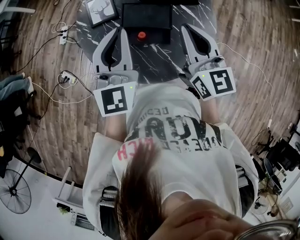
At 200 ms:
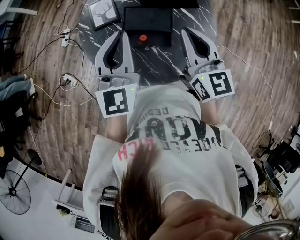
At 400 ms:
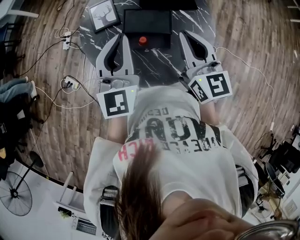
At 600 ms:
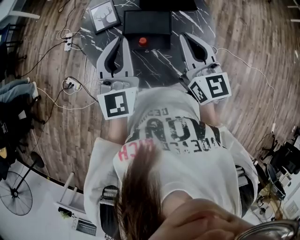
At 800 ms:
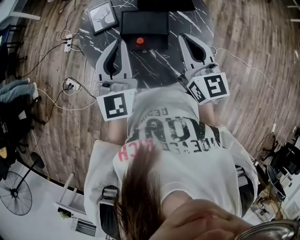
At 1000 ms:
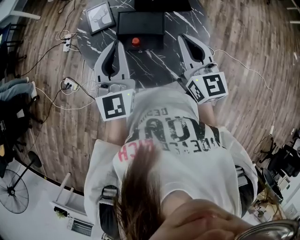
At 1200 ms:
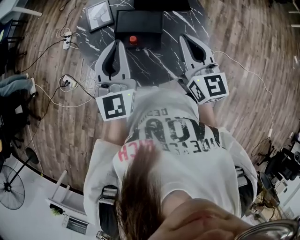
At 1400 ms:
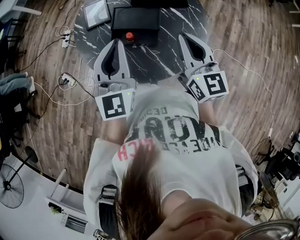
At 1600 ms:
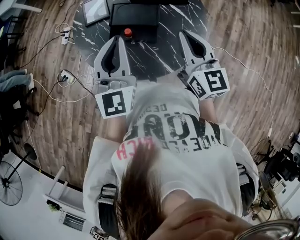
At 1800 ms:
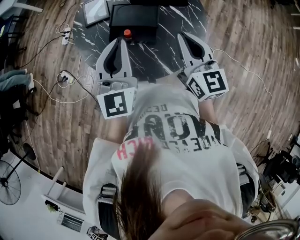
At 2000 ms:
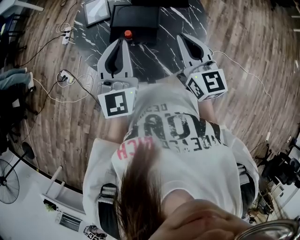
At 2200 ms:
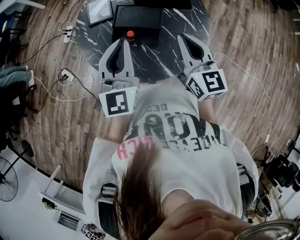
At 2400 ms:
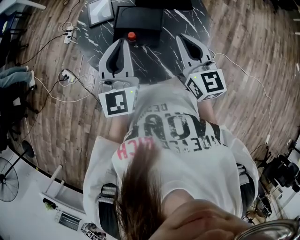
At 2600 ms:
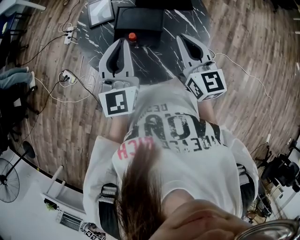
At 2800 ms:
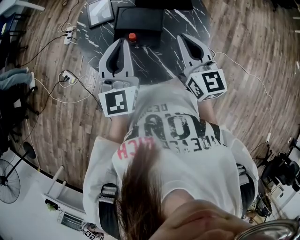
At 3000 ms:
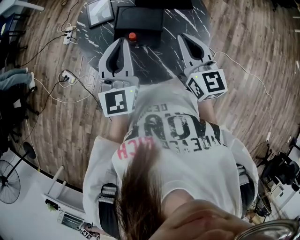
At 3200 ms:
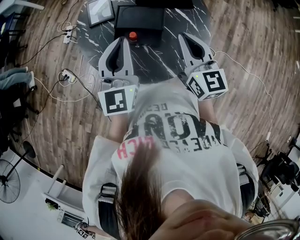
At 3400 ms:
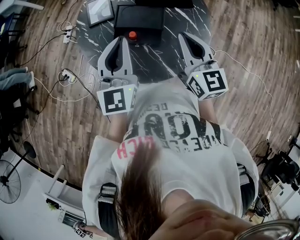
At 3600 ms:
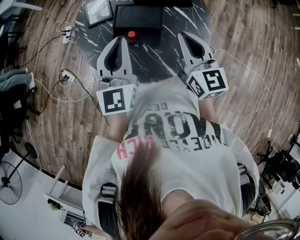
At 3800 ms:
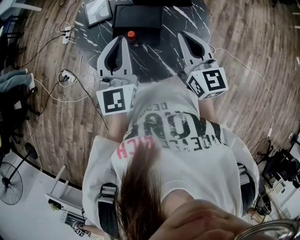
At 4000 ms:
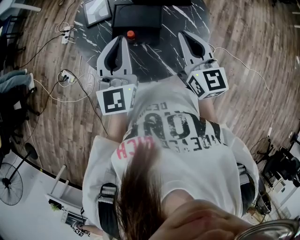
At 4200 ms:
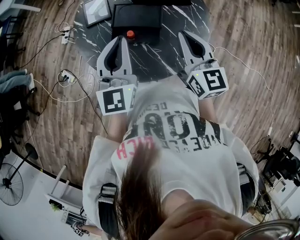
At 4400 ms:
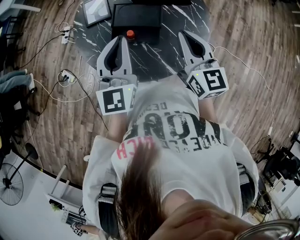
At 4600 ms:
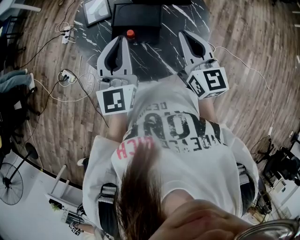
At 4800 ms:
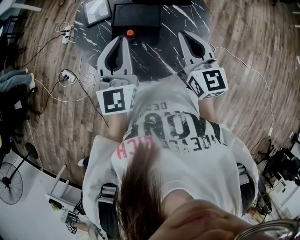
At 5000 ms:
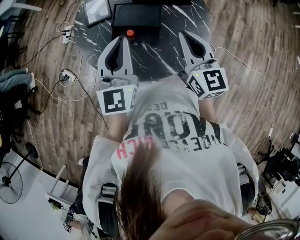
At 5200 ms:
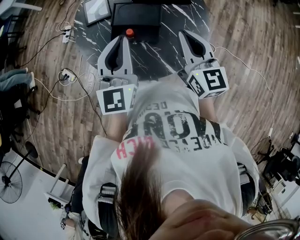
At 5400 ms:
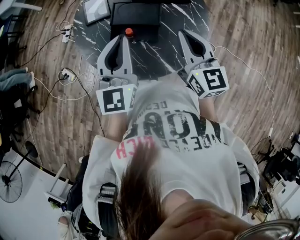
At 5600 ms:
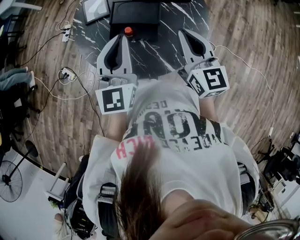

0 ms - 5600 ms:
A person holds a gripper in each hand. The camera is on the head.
0 ms - 1400 ms: The left gripper goes approximately 5 cm backward, while the right gripper travels to the right and backward by some 10 cm.
1400 ms - 2800 ms: The grippers move only a little.
2800 ms - 4200 ms: Both grippers stay put.
4200 ms - 5600 ms: There are only small adjustments of the grippers.

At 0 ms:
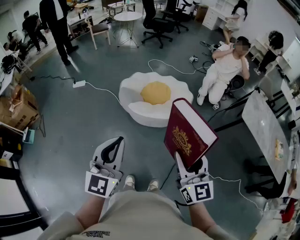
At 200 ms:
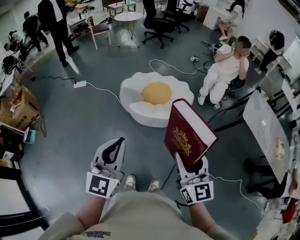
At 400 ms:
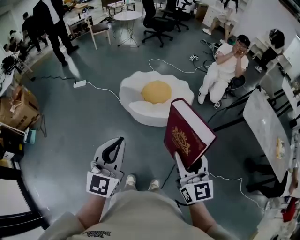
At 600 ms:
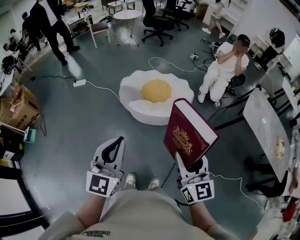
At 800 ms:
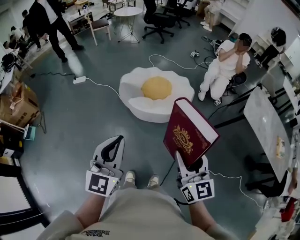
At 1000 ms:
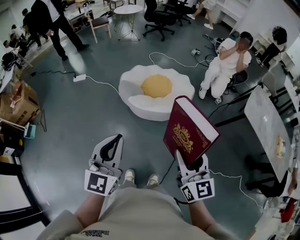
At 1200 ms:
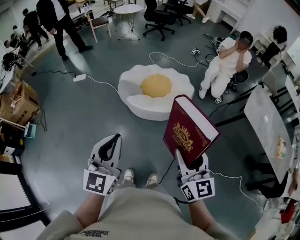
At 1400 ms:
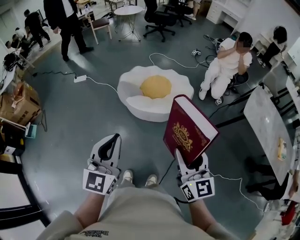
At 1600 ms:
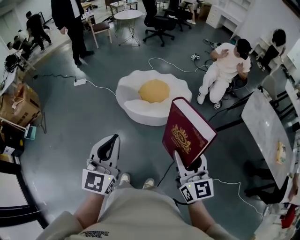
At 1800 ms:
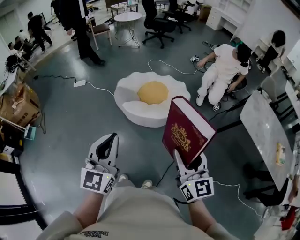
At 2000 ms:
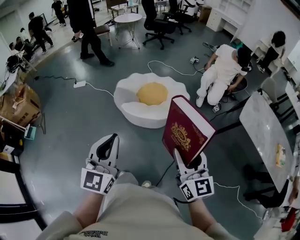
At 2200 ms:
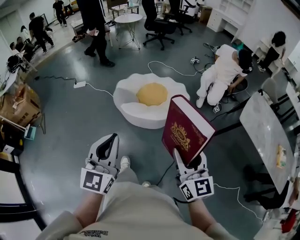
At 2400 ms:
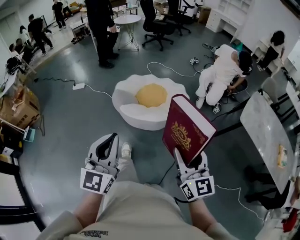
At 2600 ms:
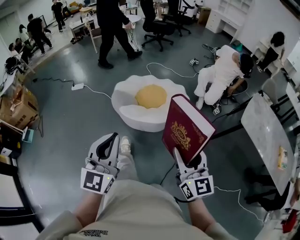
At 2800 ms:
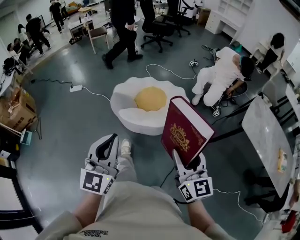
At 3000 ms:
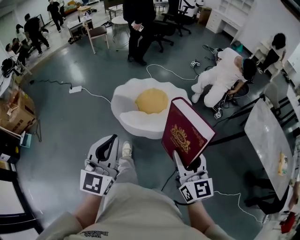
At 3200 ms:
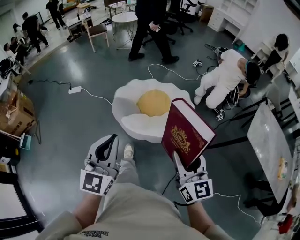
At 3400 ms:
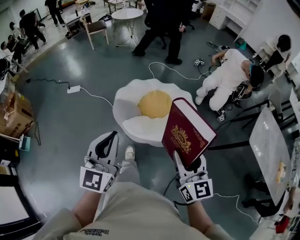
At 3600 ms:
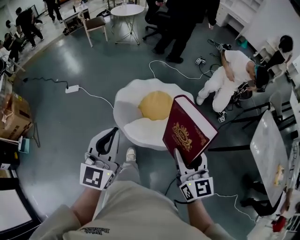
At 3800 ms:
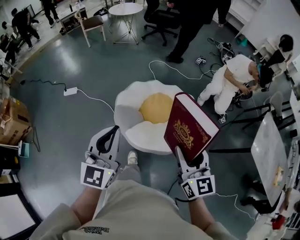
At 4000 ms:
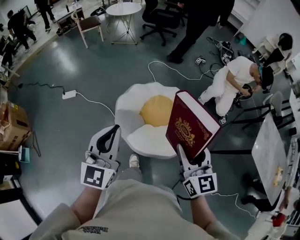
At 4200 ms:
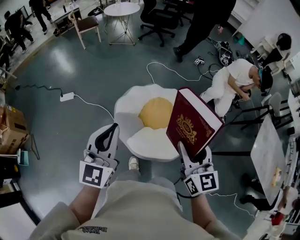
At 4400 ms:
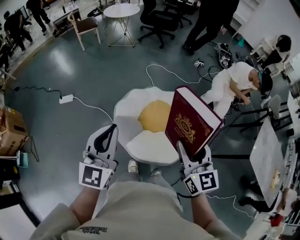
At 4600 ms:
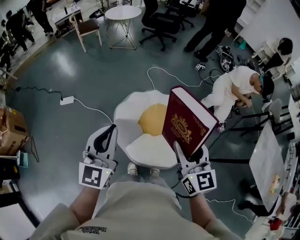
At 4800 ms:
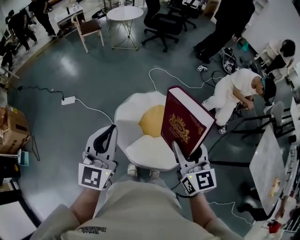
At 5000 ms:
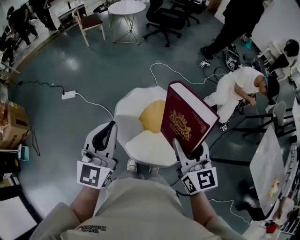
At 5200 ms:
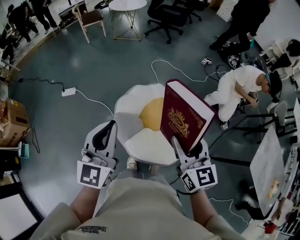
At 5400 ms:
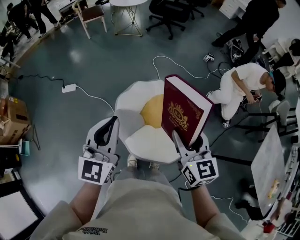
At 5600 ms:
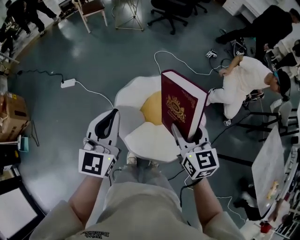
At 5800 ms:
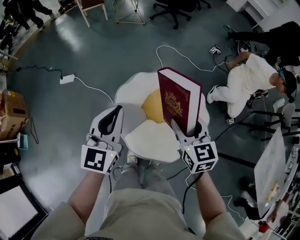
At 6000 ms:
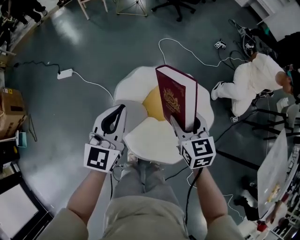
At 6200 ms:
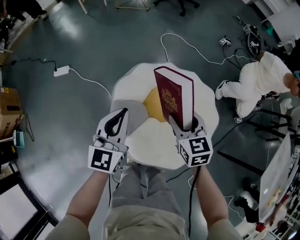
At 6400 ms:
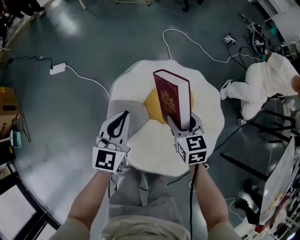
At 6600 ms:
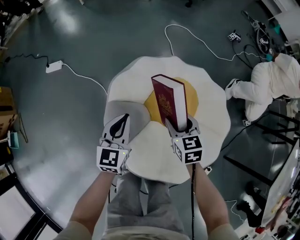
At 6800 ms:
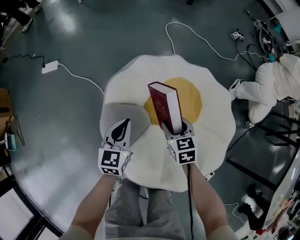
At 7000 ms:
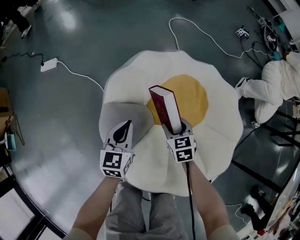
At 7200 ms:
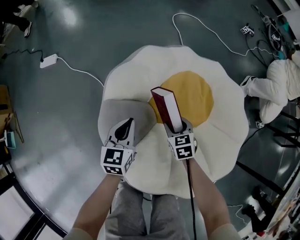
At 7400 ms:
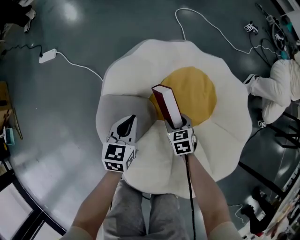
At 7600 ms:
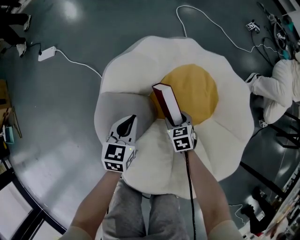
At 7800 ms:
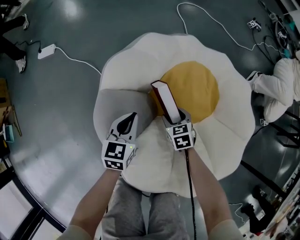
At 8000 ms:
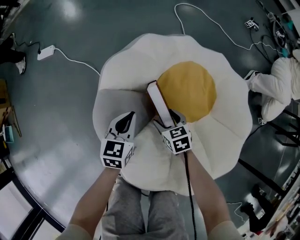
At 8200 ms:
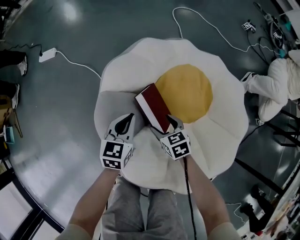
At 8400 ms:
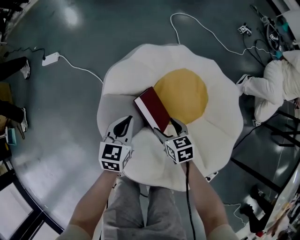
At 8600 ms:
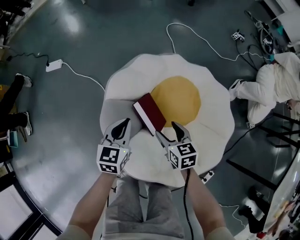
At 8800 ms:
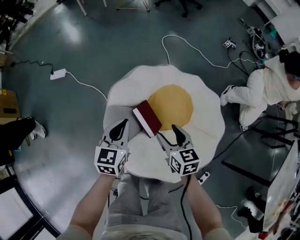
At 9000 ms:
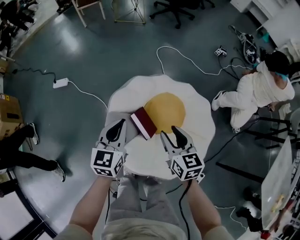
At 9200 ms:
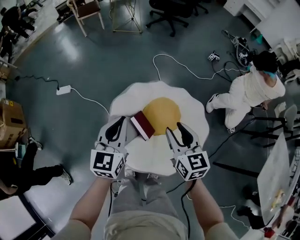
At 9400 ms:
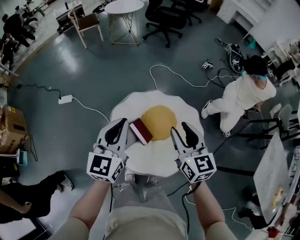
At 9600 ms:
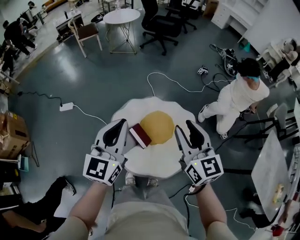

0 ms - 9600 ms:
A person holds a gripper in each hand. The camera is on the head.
0 ms - 1600 ms: Both grippers move to the right, about 10 cm.
1600 ms - 3200 ms: Both grippers move forward, some 20 cm.
3200 ms - 4800 ms: Both grippers move forward, approximately 35 cm.
4800 ms - 6400 ms: Both grippers travel together downward and forward, approximately 40 cm. The right gripper points its fingers about 30 degrees further downward.
6400 ms - 8000 ms: Both grippers travel together downward, about 35 cm. The right gripper changes its angle by roughly 20 degrees. Meanwhile the left gripper swivels roughly 20 degrees.
8000 ms - 9600 ms: The two grippers go some 70 cm upward. The right gripper points its fingers roughly 50 degrees further upward, and closes up. Meanwhile the left gripper tips its fingers upward by roughly 30 degrees.

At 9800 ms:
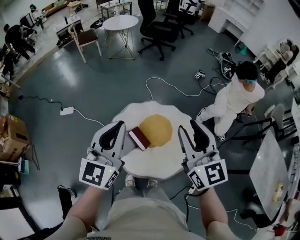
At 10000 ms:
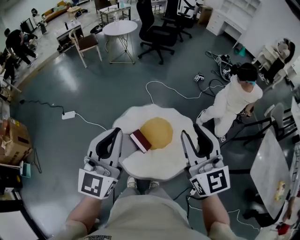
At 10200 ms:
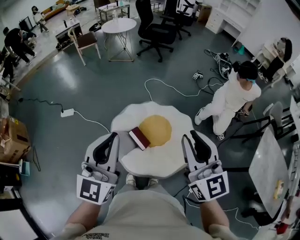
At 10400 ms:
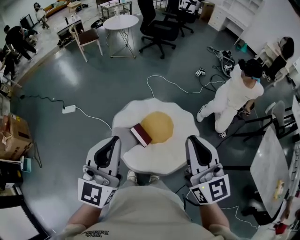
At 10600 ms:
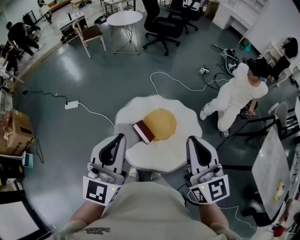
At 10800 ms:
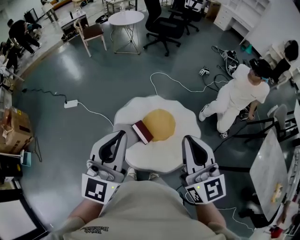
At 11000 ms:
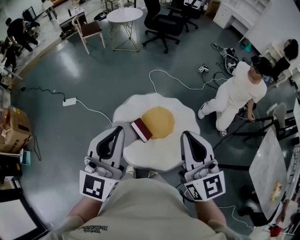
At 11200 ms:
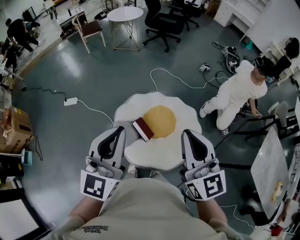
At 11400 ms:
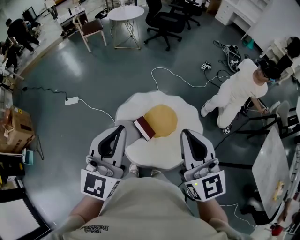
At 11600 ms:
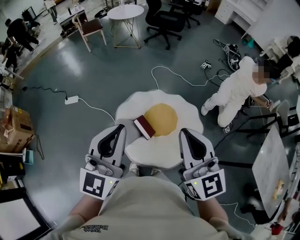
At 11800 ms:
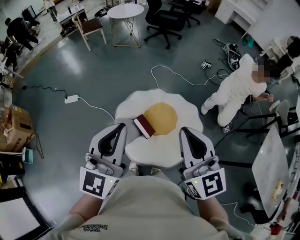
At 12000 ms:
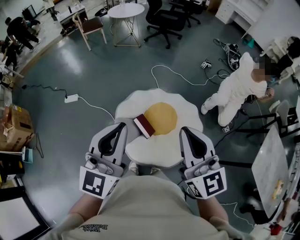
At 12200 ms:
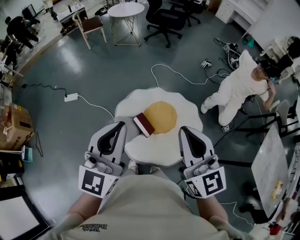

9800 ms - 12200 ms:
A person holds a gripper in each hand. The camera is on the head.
9800 ms - 11000 ms: Both grippers travel together backward, about 5 cm. The right gripper closes up.
11000 ms - 12200 ms: The grippers make only small movements.

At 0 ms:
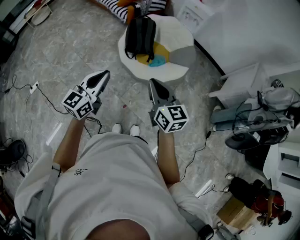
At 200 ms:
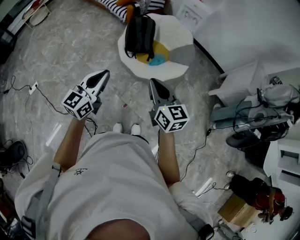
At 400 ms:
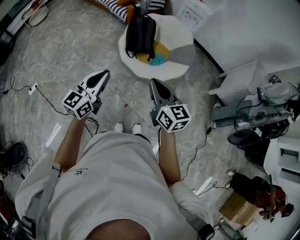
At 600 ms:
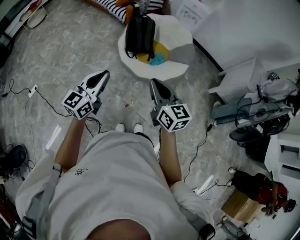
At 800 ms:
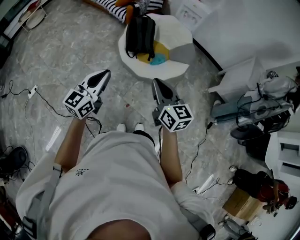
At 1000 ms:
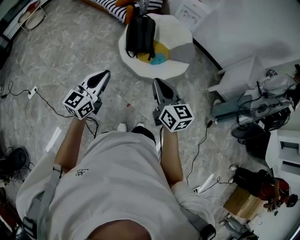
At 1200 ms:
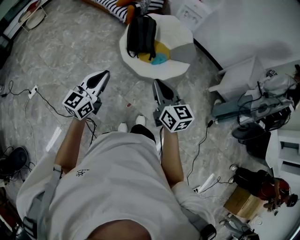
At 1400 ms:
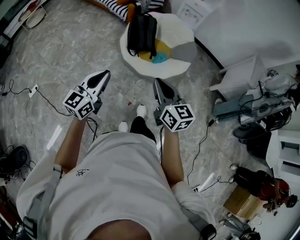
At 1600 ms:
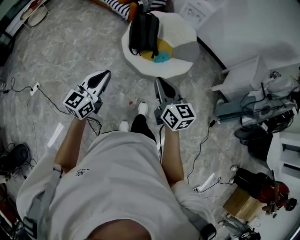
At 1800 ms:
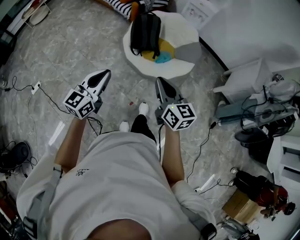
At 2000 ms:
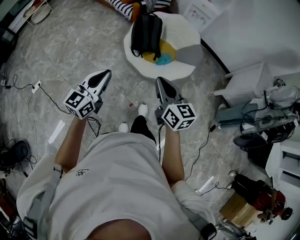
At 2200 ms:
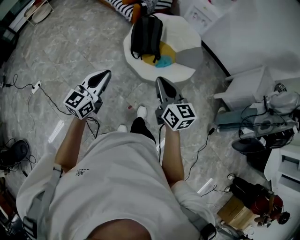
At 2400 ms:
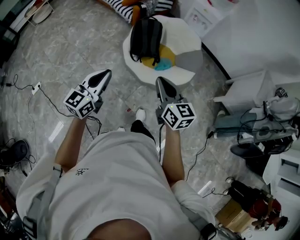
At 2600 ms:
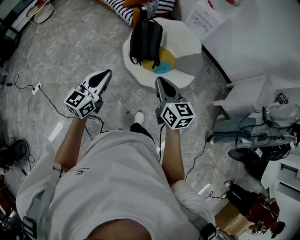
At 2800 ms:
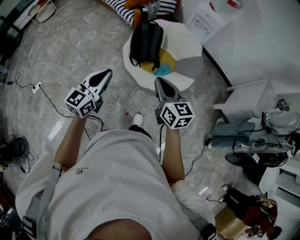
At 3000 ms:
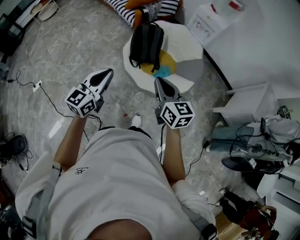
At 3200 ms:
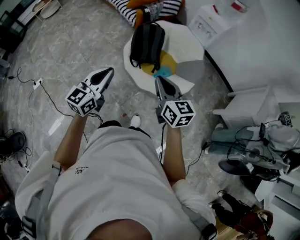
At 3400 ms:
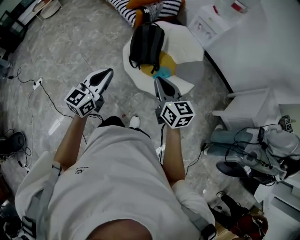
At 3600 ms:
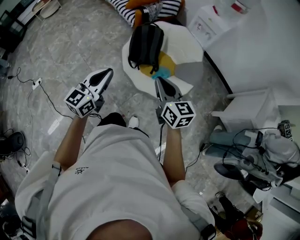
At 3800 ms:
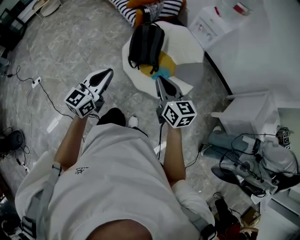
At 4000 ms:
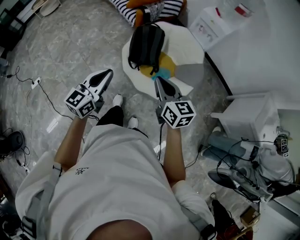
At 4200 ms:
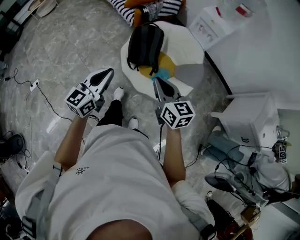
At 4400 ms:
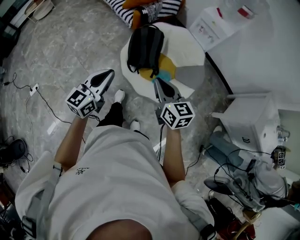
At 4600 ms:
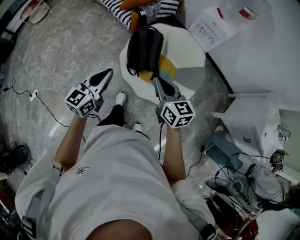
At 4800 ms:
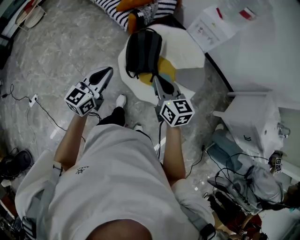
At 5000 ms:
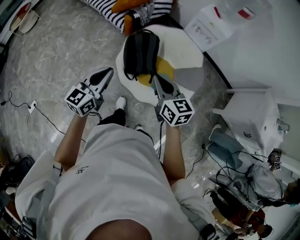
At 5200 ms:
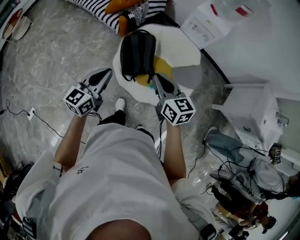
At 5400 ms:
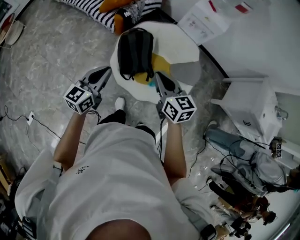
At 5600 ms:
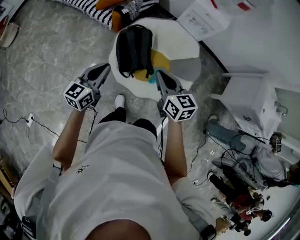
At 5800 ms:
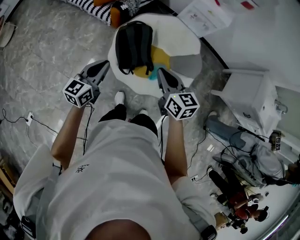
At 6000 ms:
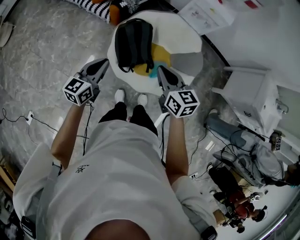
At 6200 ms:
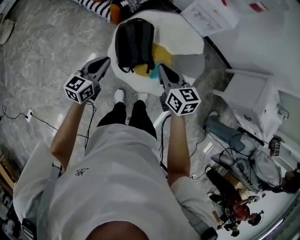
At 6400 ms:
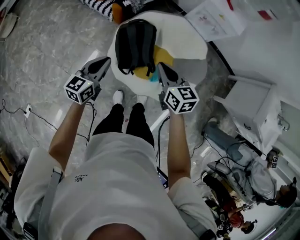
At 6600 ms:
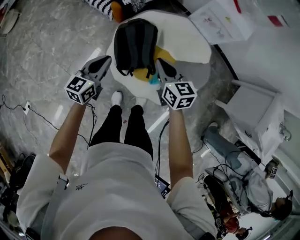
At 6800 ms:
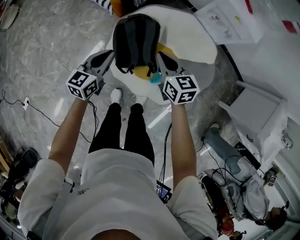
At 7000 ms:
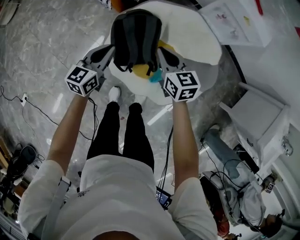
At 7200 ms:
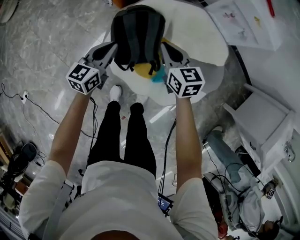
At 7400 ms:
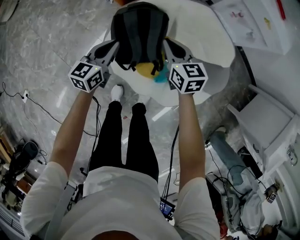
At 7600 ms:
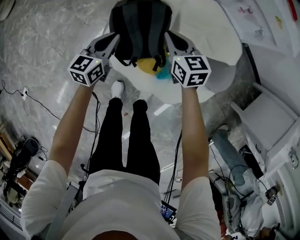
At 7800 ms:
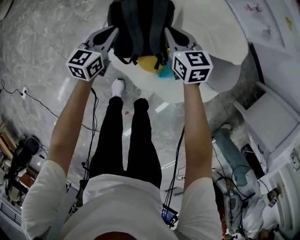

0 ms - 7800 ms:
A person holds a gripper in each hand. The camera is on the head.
0 ms - 1600 ms: The two grippers go roughly 5 cm to the left.
1600 ms - 3200 ms: Both grippers move forward and to the right, some 15 cm.
3200 ms - 4600 ms: Both grippers travel together forward, about 30 cm.
4600 ms - 6200 ms: The right gripper heads forward, covering some 20 cm, while the left gripper heads forward and downward, covering approximately 25 cm.
6200 ms - 7800 ms: Both grippers move downward and forward, approximately 40 cm.
